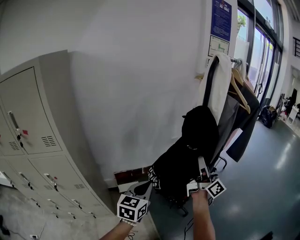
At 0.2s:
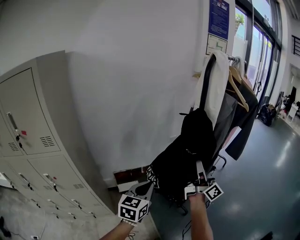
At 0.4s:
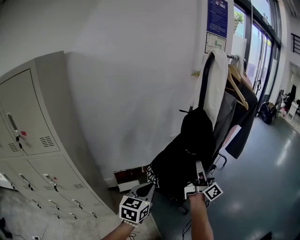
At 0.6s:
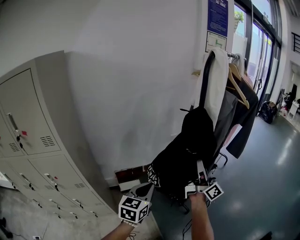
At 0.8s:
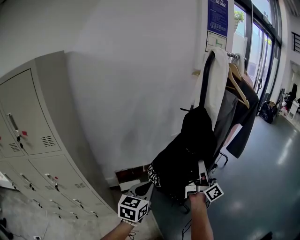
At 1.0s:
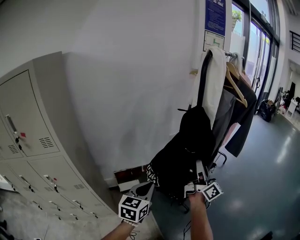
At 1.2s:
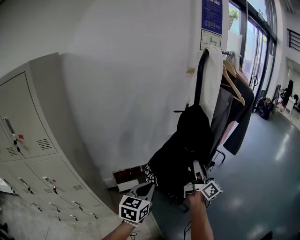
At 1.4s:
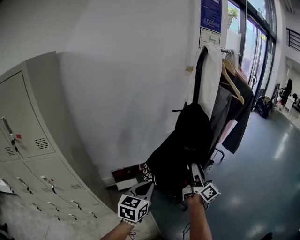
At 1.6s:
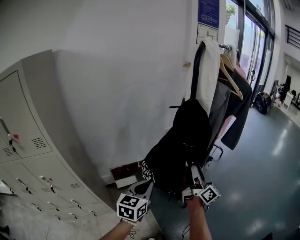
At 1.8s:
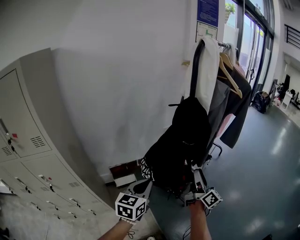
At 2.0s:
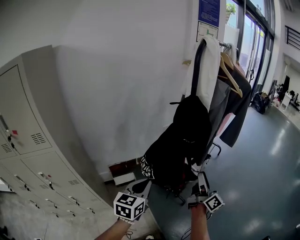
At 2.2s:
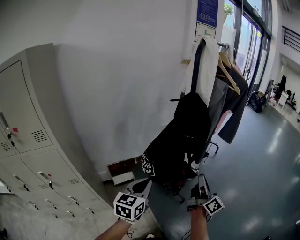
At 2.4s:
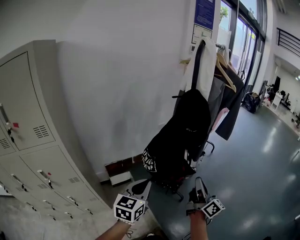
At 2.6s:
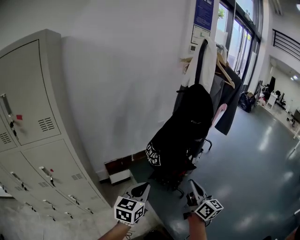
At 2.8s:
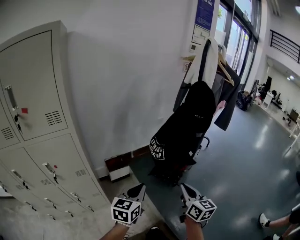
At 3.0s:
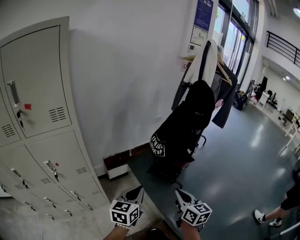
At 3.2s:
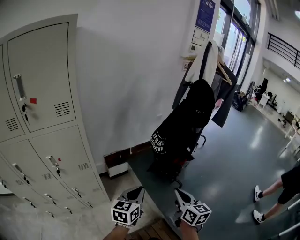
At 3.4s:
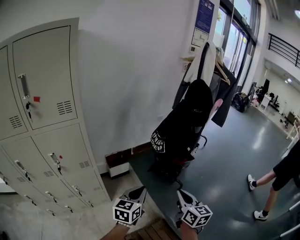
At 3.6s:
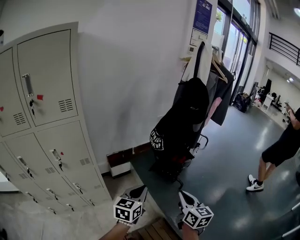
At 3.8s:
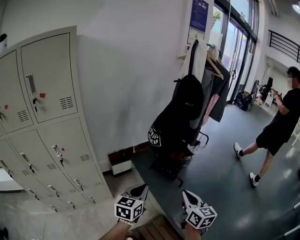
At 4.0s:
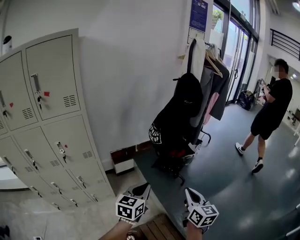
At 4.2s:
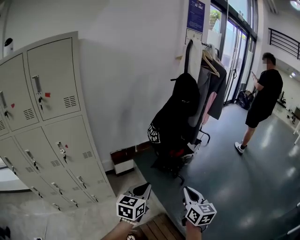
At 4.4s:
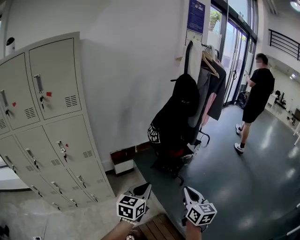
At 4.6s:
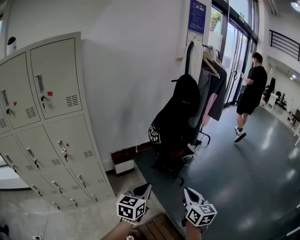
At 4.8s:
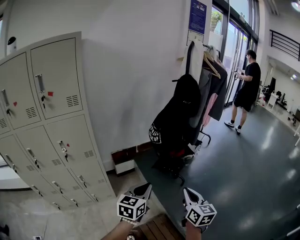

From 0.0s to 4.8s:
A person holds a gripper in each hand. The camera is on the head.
From 0.0s to 1.6s: The right gripper heads downward, covering about 10 cm, and opens.
From 1.6s to 3.2s: The right gripper travels backward and to the left by about 40 cm, angles its fingers downward, by about 30 degrees, and closes its fingers, while the left gripper shifts about 30 cm backward, to the left and downward.
From 3.2s to 4.8s: The left gripper travels backward and to the right by about 15 cm; the right gripper is displaced to the right and backward by roughly 15 cm.

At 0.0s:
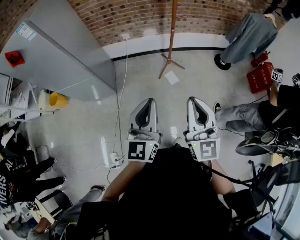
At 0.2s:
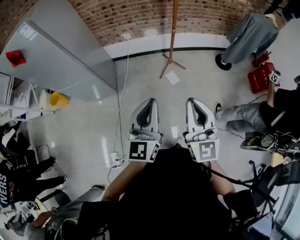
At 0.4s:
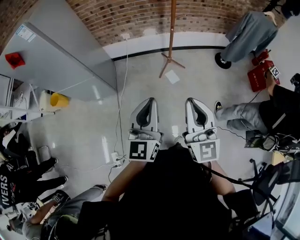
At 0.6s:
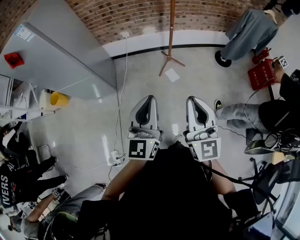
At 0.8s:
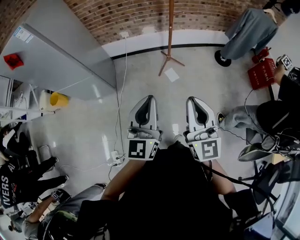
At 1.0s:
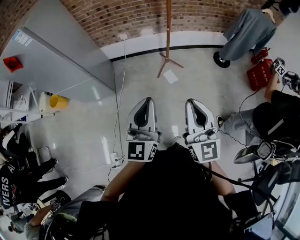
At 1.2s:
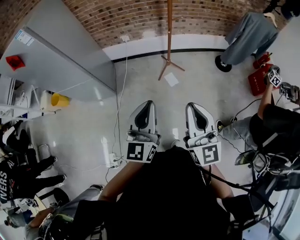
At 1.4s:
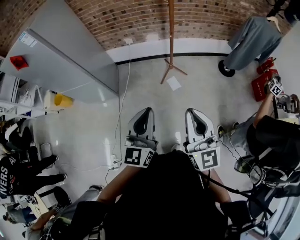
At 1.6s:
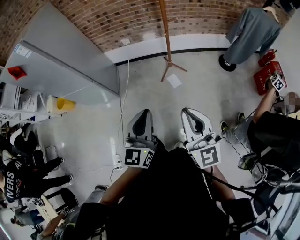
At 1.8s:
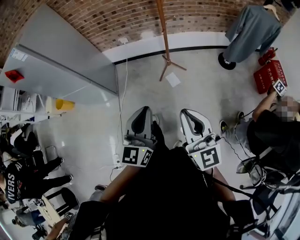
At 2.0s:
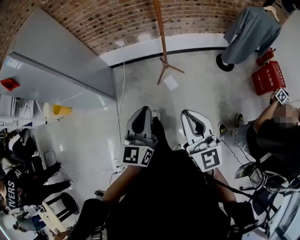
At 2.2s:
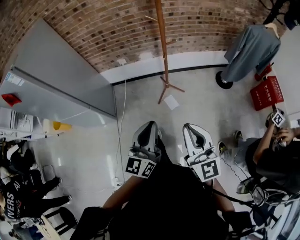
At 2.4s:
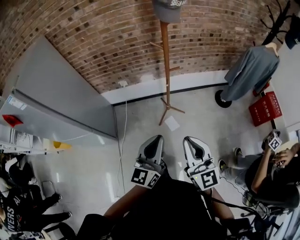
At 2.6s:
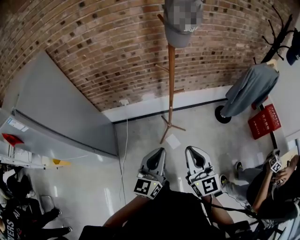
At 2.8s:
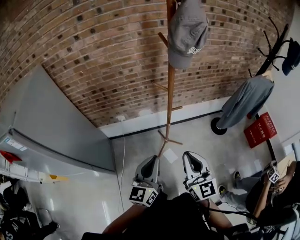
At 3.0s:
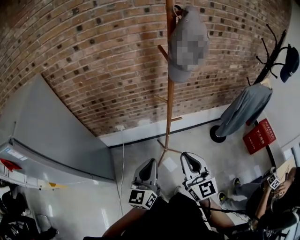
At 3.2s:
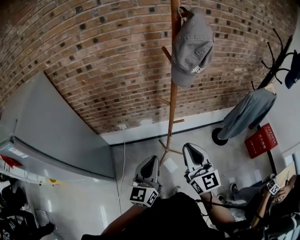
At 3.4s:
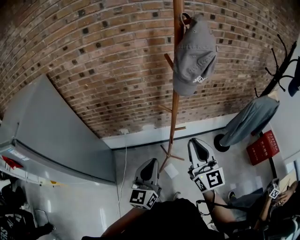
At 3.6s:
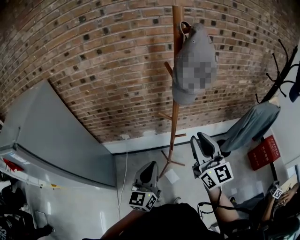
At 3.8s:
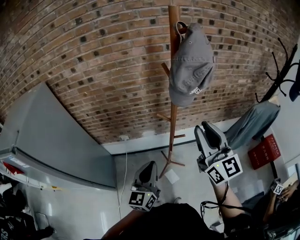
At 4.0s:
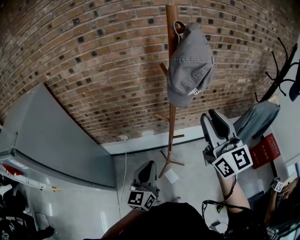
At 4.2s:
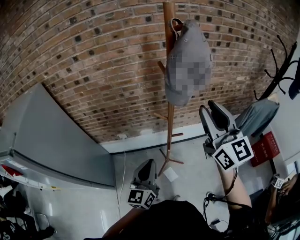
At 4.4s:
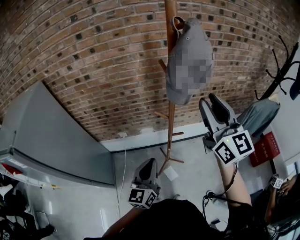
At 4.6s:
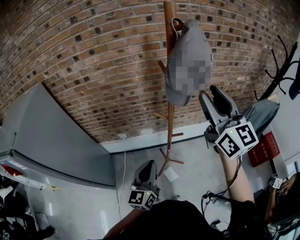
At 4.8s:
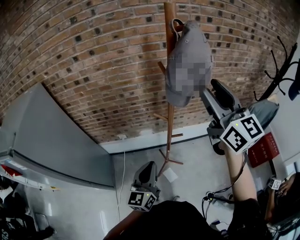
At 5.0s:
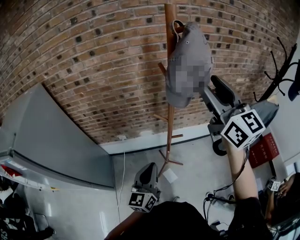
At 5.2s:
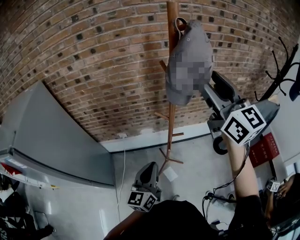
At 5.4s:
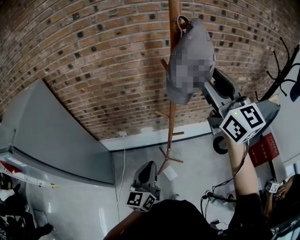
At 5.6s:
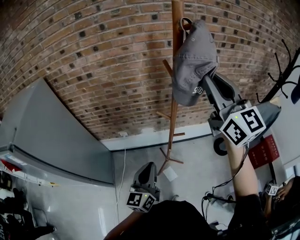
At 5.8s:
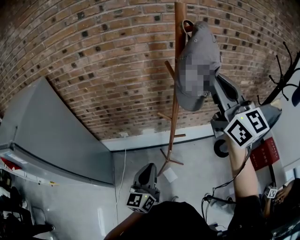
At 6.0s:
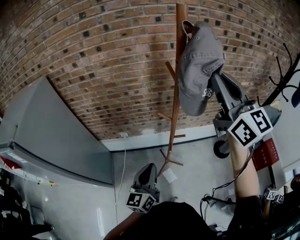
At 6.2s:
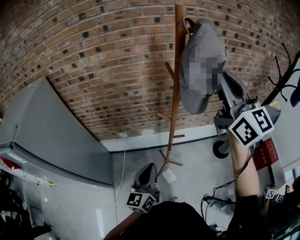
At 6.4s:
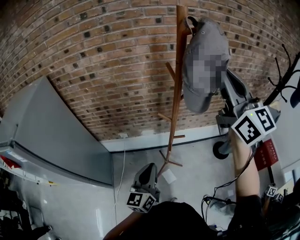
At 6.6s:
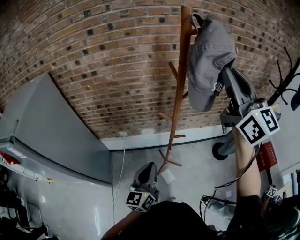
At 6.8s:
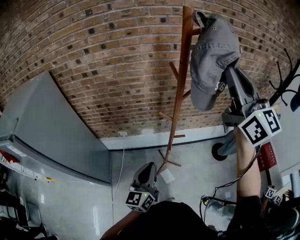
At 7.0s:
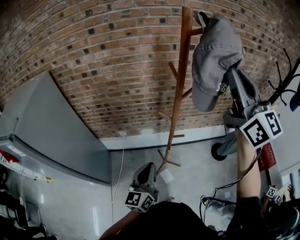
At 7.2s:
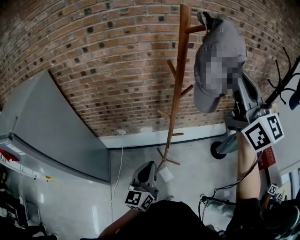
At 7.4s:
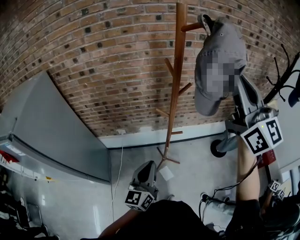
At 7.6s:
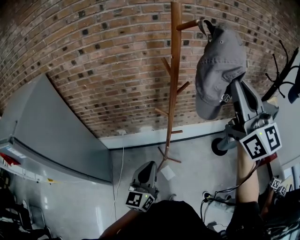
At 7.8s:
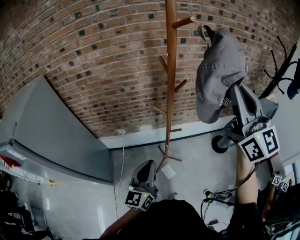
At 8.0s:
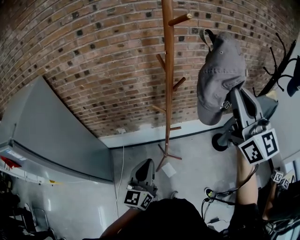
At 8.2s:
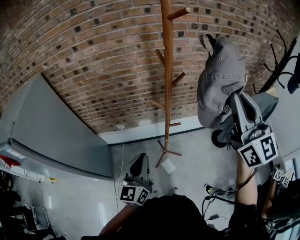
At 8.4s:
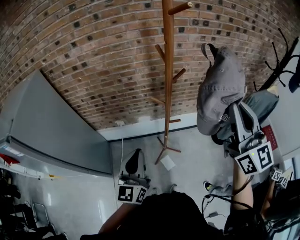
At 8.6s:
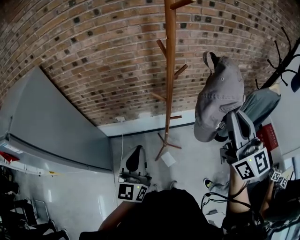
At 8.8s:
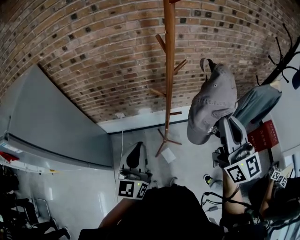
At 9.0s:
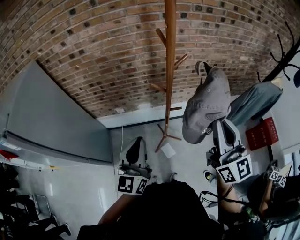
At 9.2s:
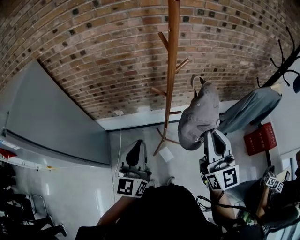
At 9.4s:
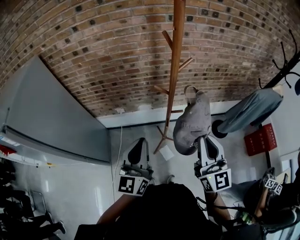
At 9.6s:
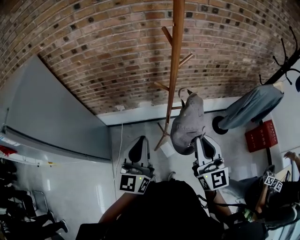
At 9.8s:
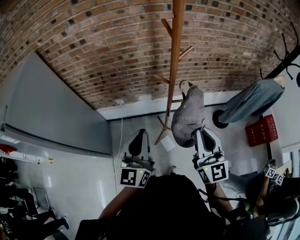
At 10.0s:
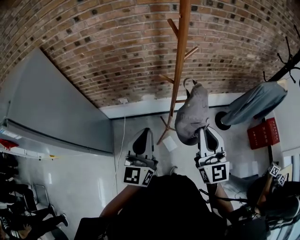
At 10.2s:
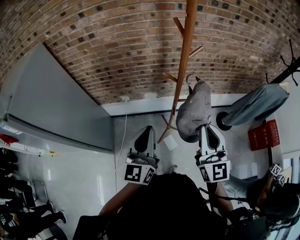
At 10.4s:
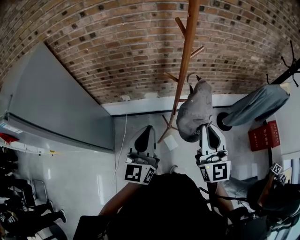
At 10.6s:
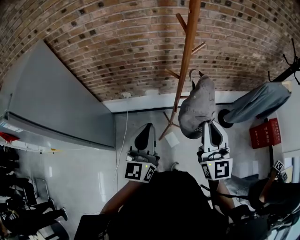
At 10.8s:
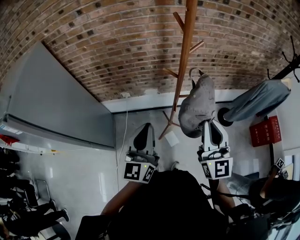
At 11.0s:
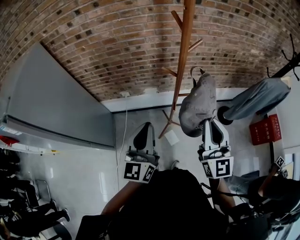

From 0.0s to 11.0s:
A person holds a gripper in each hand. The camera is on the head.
From 0.0s to 1.6s: The two grippers go roughly 10 cm to the right.
From 1.6s to 3.2s: The grippers both shift forward by approximately 40 cm.
From 3.2s to 4.8s: The right gripper moves upward and forward, approximately 30 cm, and opens. Meanwhile the left gripper goes about 5 cm forward.
From 4.8s to 6.2s: The right gripper heads upward, covering some 5 cm, and closes its fingers.
From 6.2s to 7.8s: The right gripper goes roughly 10 cm backward and to the right.
From 7.8s to 9.4s: The right gripper travels downward by approximately 25 cm.
From 9.4s to 11.0s: The grippers make only small movements.

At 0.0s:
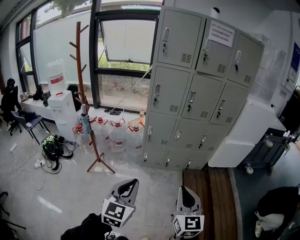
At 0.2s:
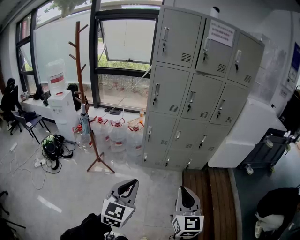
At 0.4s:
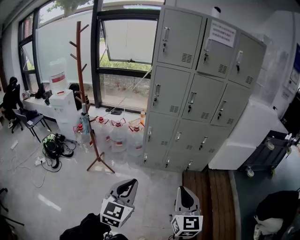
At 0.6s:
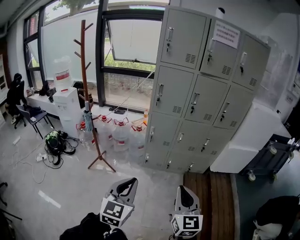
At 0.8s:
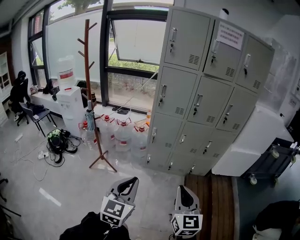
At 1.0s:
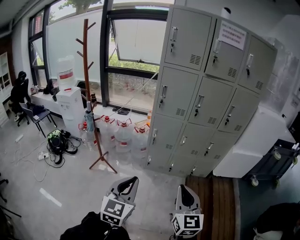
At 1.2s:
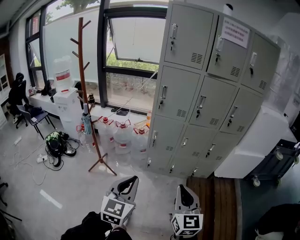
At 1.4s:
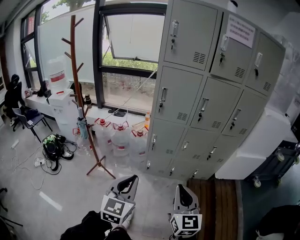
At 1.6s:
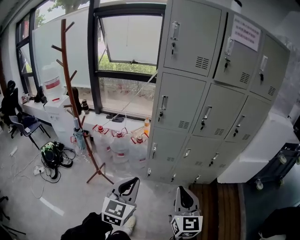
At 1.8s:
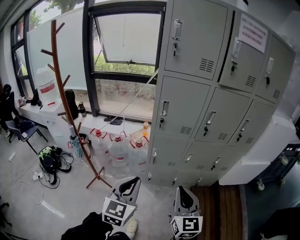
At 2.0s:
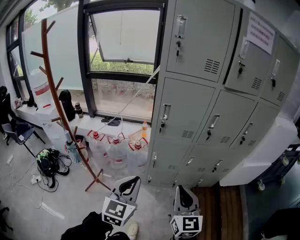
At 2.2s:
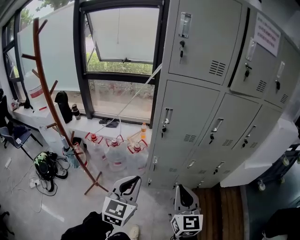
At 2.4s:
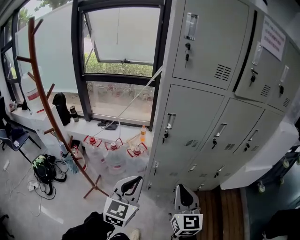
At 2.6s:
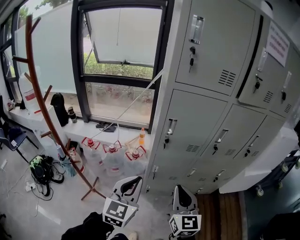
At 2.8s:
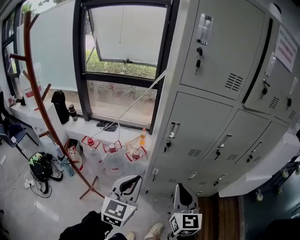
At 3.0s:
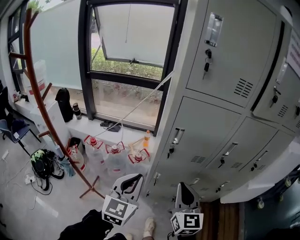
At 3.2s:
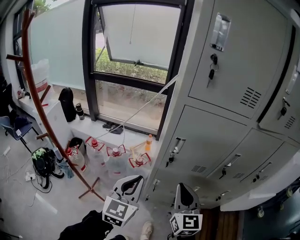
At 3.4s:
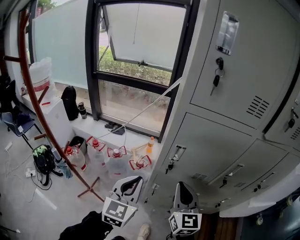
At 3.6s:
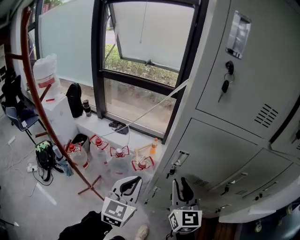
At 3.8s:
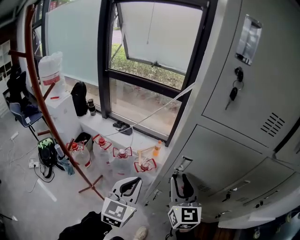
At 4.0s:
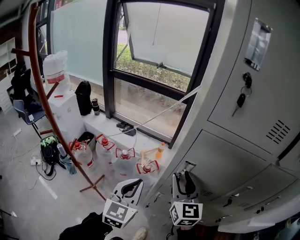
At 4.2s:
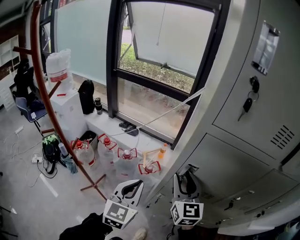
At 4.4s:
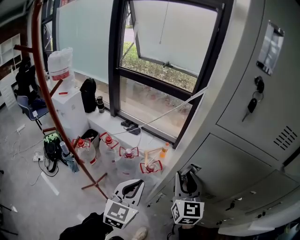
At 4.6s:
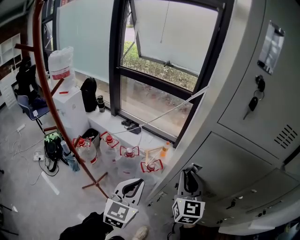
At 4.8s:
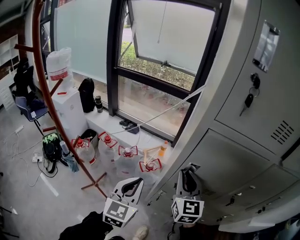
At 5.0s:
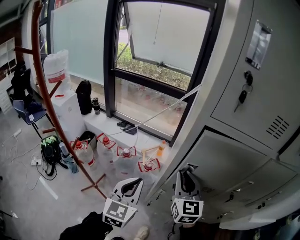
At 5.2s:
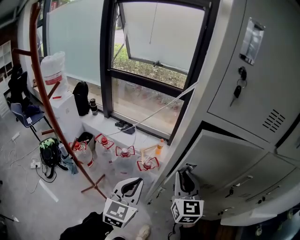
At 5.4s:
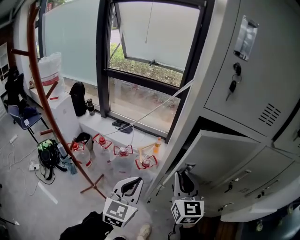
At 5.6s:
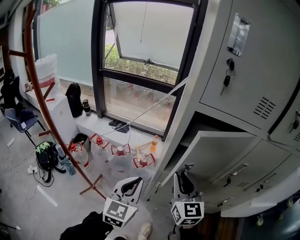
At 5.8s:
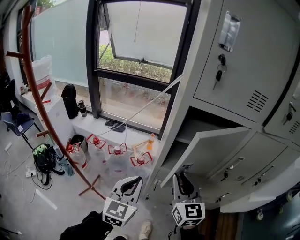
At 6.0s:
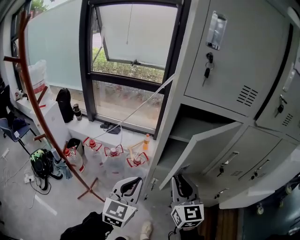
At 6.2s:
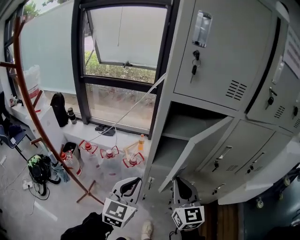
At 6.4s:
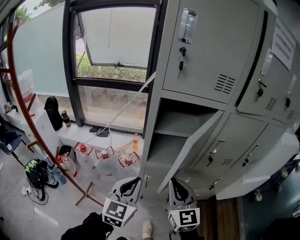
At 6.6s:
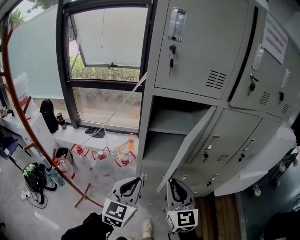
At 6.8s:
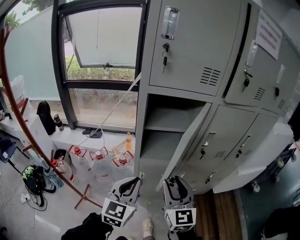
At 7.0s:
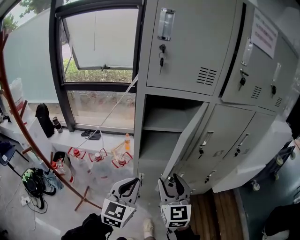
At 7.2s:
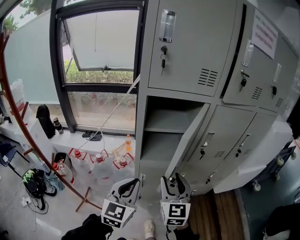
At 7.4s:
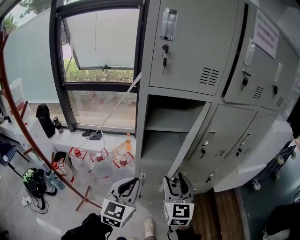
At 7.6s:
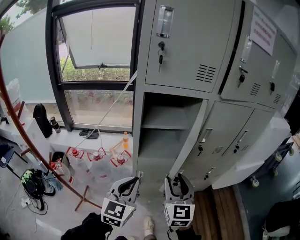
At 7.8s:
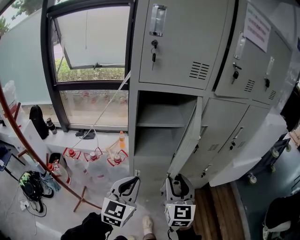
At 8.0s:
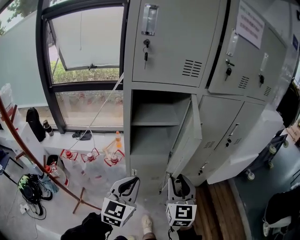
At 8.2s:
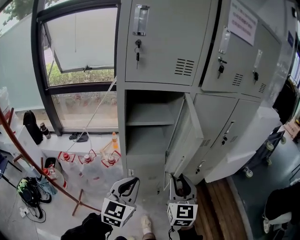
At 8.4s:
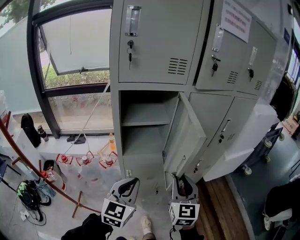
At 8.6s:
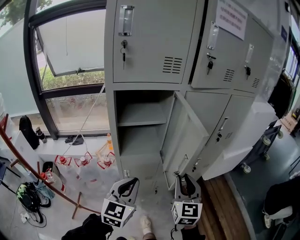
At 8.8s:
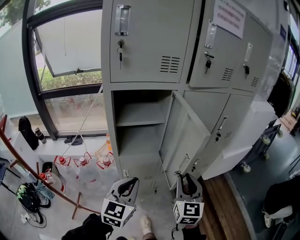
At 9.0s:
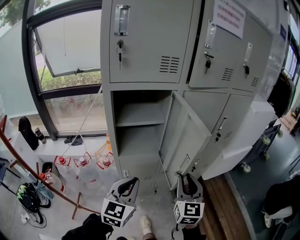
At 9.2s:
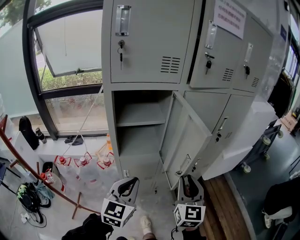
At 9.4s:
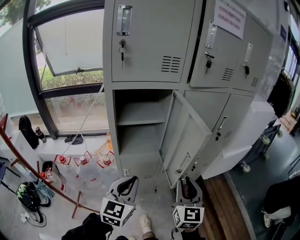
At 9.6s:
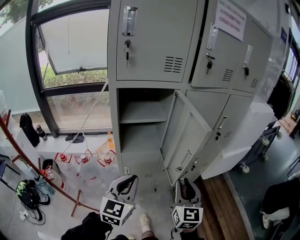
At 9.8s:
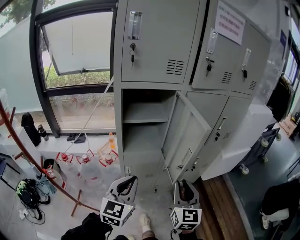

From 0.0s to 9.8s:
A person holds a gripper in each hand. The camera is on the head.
From 0.0s to 1.4s: Both grippers travel together forward, about 15 cm.
From 1.4s to 2.8s: Both grippers travel together forward, roughly 35 cm.
From 2.8s to 4.2s: The right gripper is displaced forward by approximately 25 cm, and opens its fingers. The left gripper travels forward by about 15 cm.
From 4.2s to 5.6s: The left gripper shifts approximately 5 cm backward; the right gripper goes roughly 10 cm backward, and closes.
From 5.6s to 7.0s: The right gripper goes approximately 15 cm backward and to the right, and opens its fingers. Meanwhile the left gripper shifts some 10 cm to the right and backward.
From 7.0s to 8.4s: The right gripper heads to the right, covering some 10 cm, and closes, while the left gripper shifts some 5 cm to the right.
From 8.4s to 9.8s: The right gripper is displaced backward by some 5 cm.
